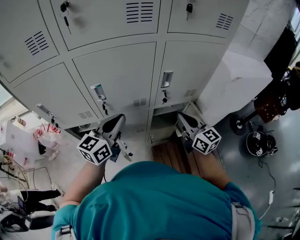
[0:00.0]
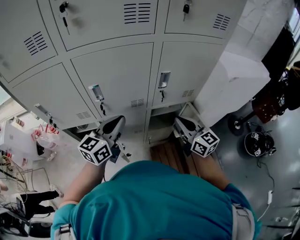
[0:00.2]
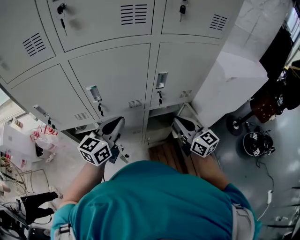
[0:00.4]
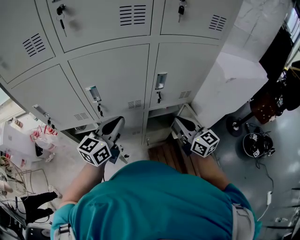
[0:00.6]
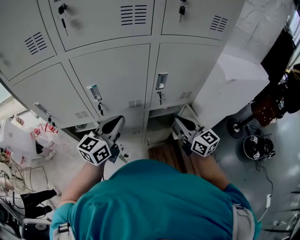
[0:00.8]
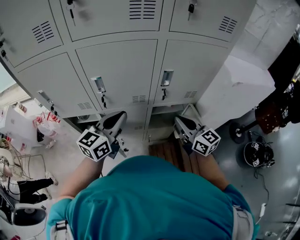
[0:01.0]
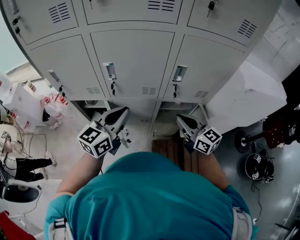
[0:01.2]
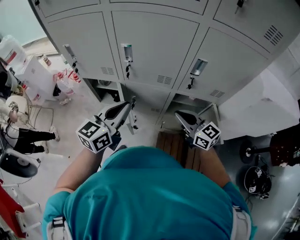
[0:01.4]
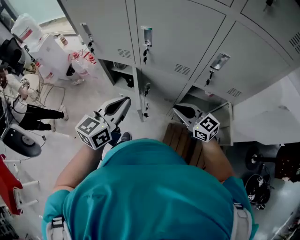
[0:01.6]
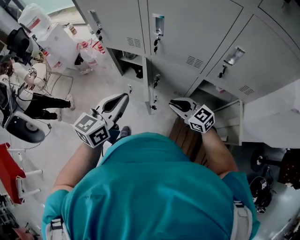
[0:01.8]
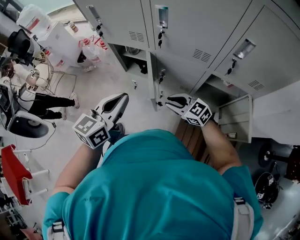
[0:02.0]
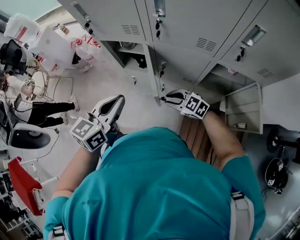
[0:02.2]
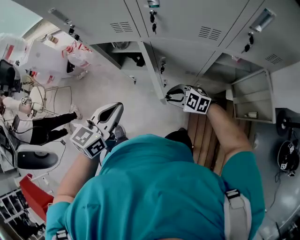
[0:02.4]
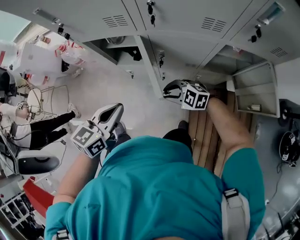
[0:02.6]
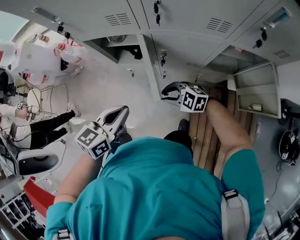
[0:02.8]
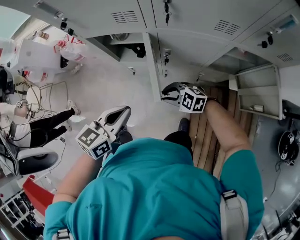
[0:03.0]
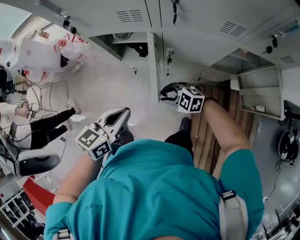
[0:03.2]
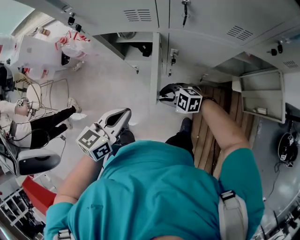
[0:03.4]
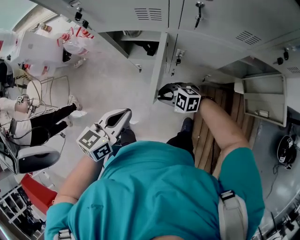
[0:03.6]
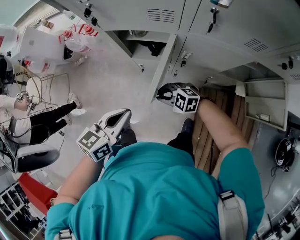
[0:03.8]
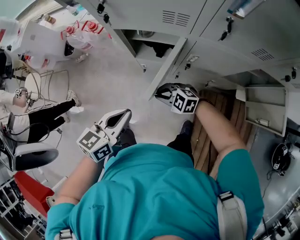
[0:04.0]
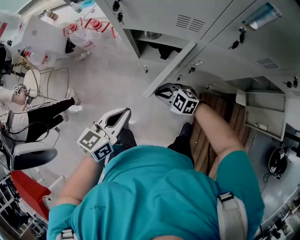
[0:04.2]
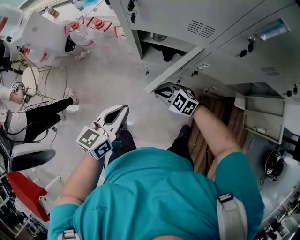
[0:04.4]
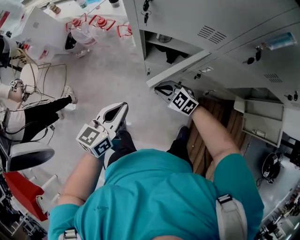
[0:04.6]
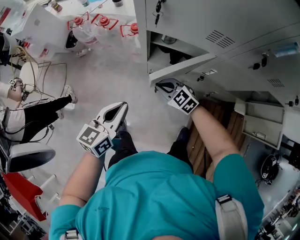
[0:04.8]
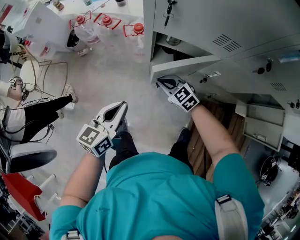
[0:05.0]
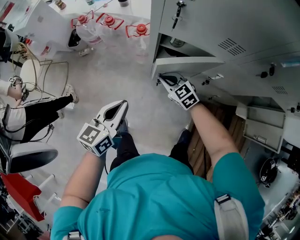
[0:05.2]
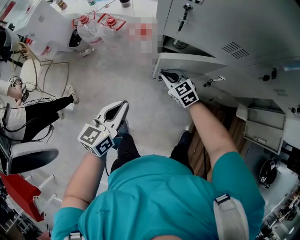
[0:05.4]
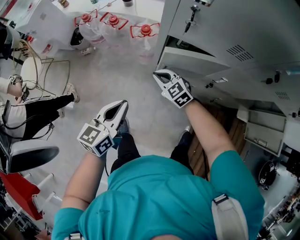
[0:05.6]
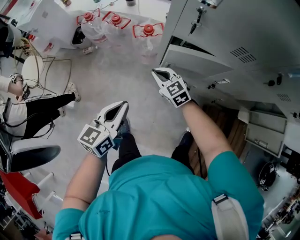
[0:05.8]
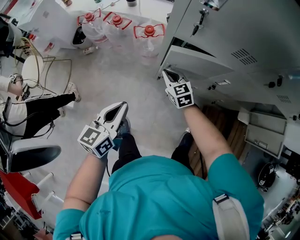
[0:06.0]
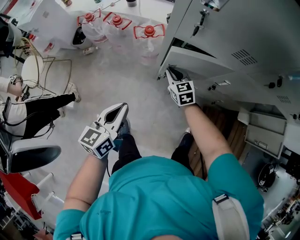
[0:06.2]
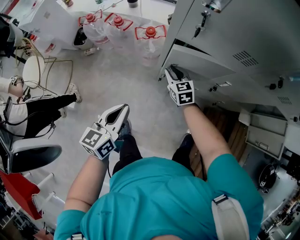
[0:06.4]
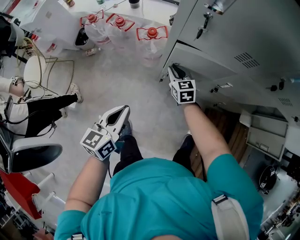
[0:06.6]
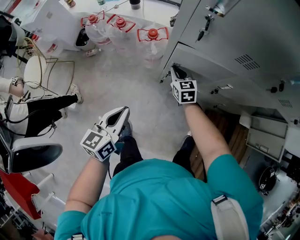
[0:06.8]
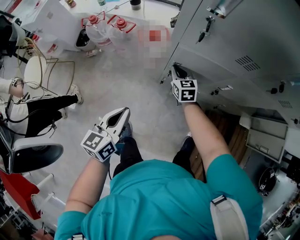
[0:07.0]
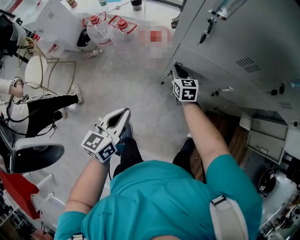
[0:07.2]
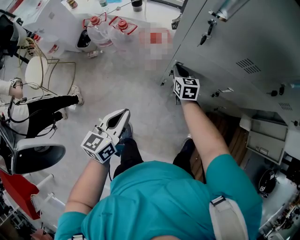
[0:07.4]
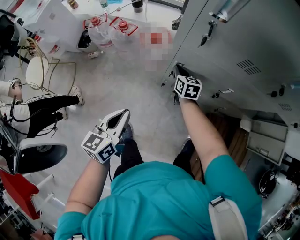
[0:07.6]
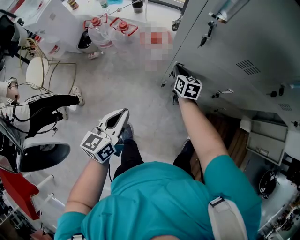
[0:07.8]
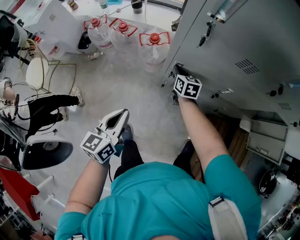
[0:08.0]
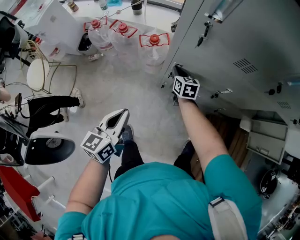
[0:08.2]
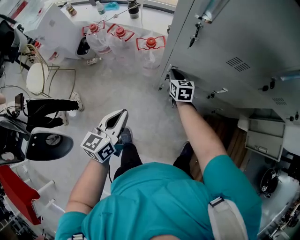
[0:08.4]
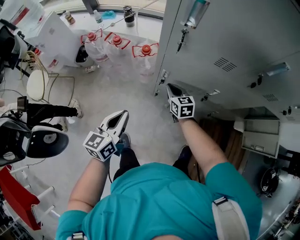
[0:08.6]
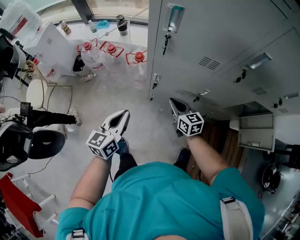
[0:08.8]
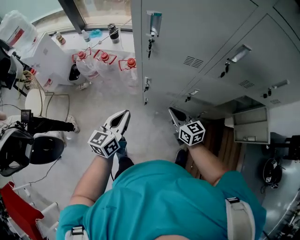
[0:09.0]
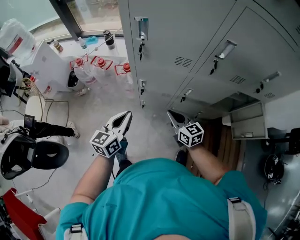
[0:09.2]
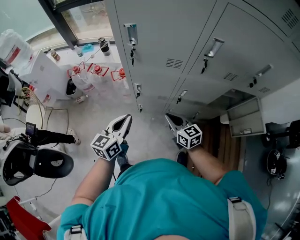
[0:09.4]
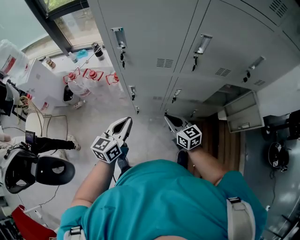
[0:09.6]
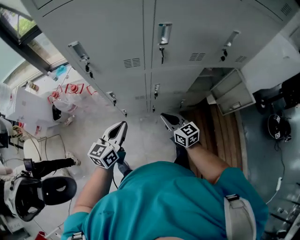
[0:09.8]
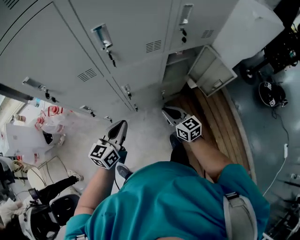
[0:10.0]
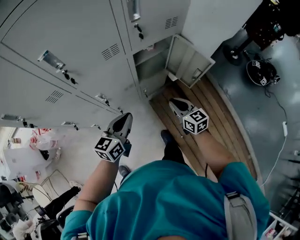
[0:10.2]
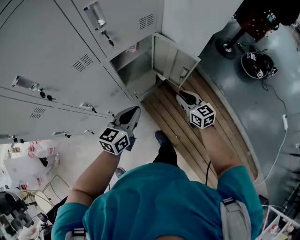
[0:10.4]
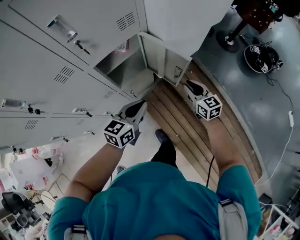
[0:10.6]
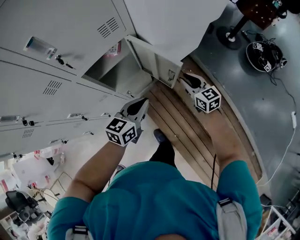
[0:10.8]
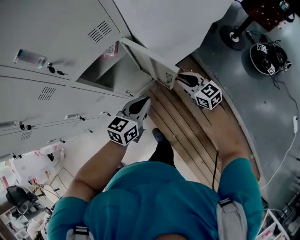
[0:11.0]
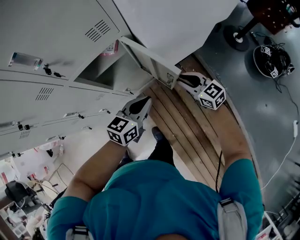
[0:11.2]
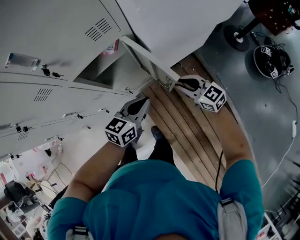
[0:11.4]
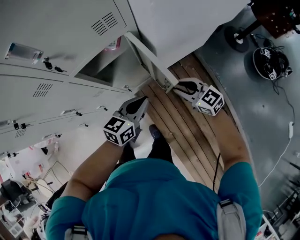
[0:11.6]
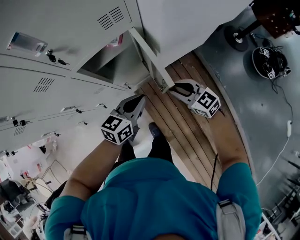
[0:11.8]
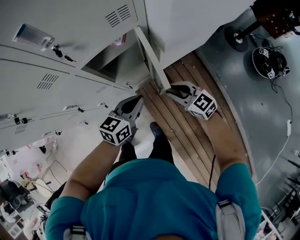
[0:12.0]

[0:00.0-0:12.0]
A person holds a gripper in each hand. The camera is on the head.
0.0 to 1.6 s: The left gripper moves approximately 15 cm, and swivels about 30 degrees, while the right gripper ends up some 15 cm from where it was, and changes its angle by some 50 degrees.
1.6 to 3.0 s: The grippers both shift downward by roughly 25 cm. The right gripper changes its angle by about 40 degrees; the left gripper turns by roughly 30 degrees.
3.0 to 4.4 s: The right gripper changes place by some 20 cm. Meanwhile the left gripper moves some 15 cm.
4.4 to 6.0 s: The left gripper is displaced to the left and forward by about 15 cm, while the right gripper shifts about 15 cm forward, and changes its angle by roughly 40 degrees.
6.0 to 7.6 s: The right gripper shifts roughly 5 cm forward, and turns by approximately 30 degrees.
7.6 to 9.0 s: The right gripper moves backward, upward and to the right, approximately 25 cm. Meanwhile the left gripper goes about 10 cm to the right and upward.
9.0 to 10.4 s: The two grippers travel together, approximately 60 cm. The right gripper changes its angle by roughly 40 degrees, while the left gripper swivels roughly 50 degrees.
10.4 to 12.0 s: The right gripper heads forward, covering roughly 5 cm, and changes its angle by some 30 degrees; the left gripper goes approximately 15 cm to the right, forward and downward.

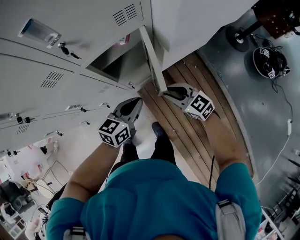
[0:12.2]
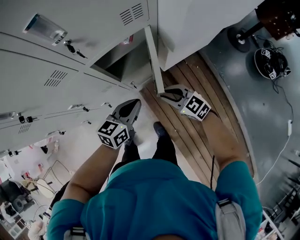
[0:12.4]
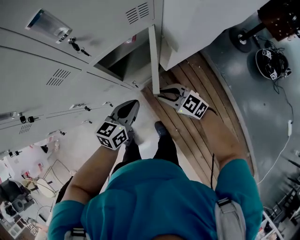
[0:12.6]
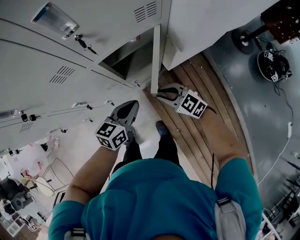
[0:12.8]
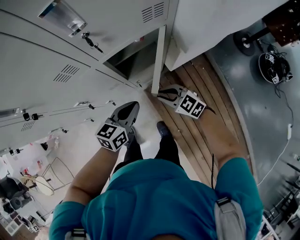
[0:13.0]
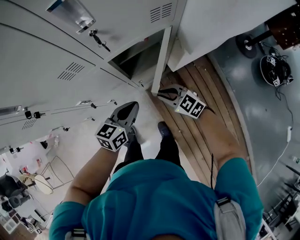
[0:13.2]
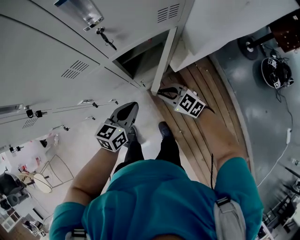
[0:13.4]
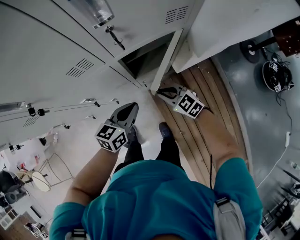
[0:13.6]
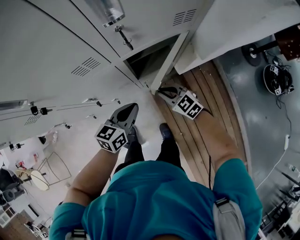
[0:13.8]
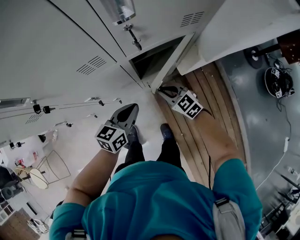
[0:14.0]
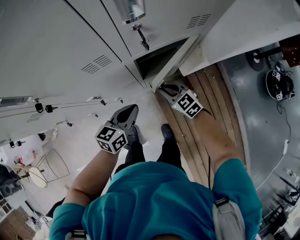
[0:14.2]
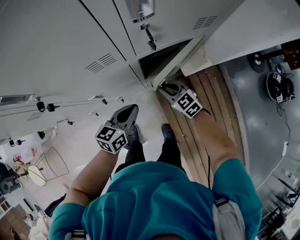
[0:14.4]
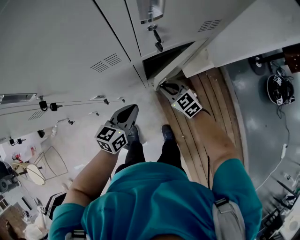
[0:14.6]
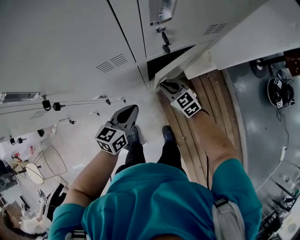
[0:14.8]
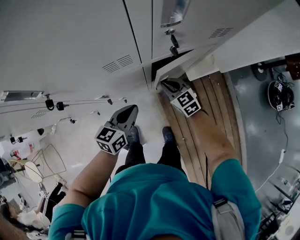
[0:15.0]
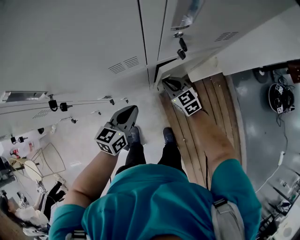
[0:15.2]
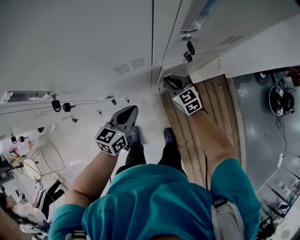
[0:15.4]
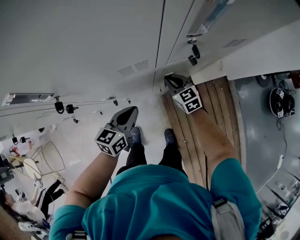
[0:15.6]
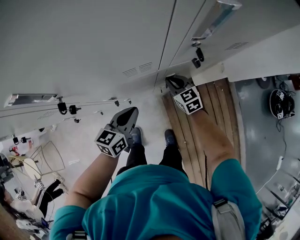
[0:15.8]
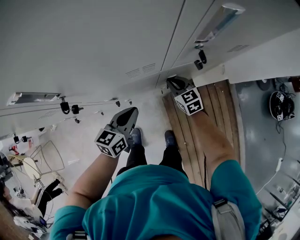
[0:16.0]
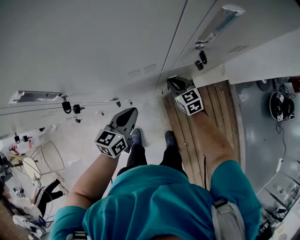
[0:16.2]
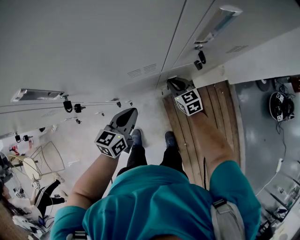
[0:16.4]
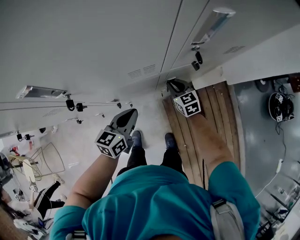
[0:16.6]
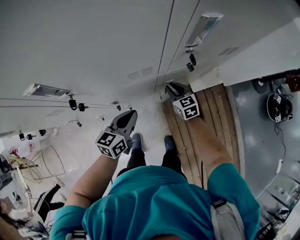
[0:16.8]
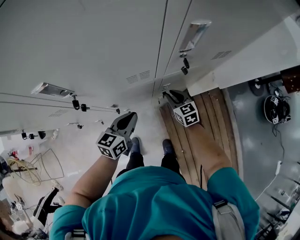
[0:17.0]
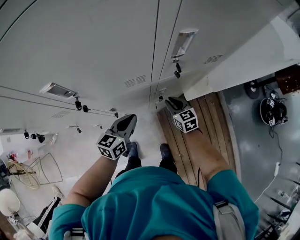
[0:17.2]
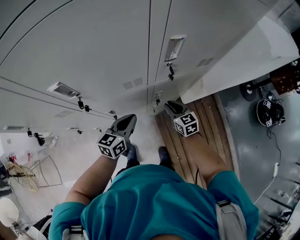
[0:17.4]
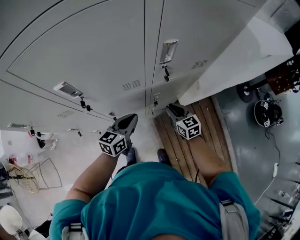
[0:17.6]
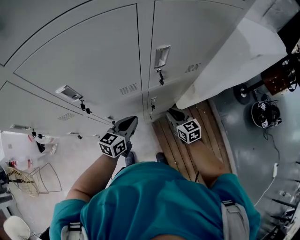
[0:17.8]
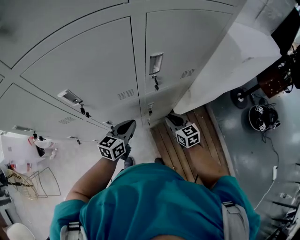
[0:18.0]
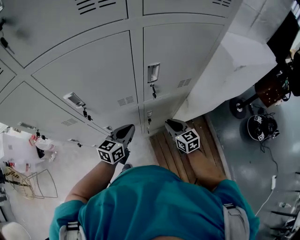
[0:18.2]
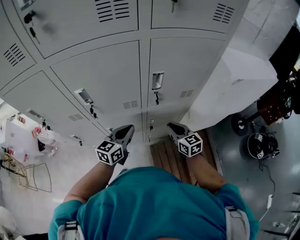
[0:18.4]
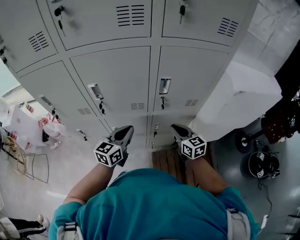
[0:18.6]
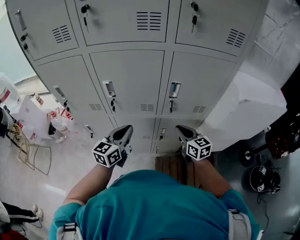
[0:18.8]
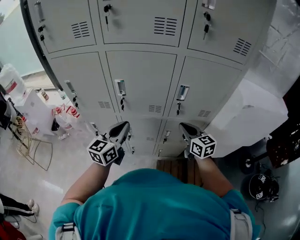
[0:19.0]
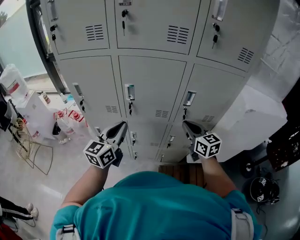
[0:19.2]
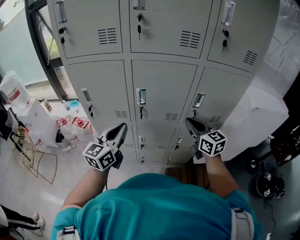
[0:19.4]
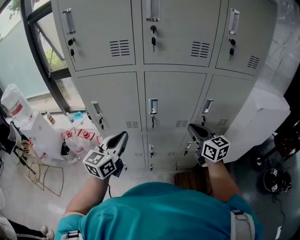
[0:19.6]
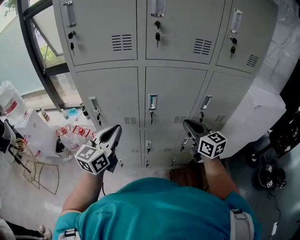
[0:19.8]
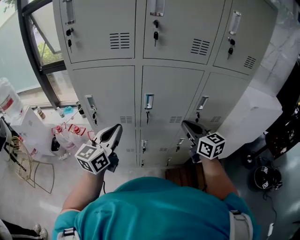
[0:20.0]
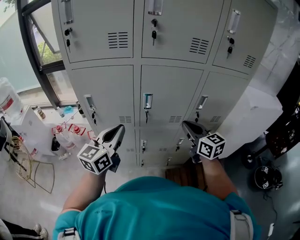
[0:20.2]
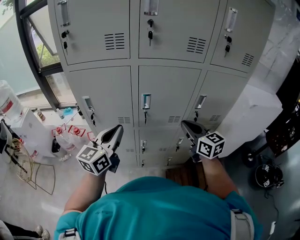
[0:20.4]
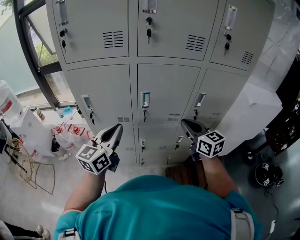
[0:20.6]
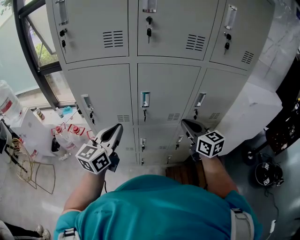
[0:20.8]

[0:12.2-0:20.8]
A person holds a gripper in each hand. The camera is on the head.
12.2 to 13.6 s: Both grippers travel together to the left, about 15 cm.
13.6 to 15.0 s: The right gripper heads forward and to the left, covering roughly 10 cm; the left gripper moves to the left, roughly 10 cm.
15.0 to 16.6 s: The left gripper shifts by some 5 cm.
16.6 to 18.0 s: The right gripper travels upward, backward and to the right by about 20 cm. Meanwhile the left gripper is displaced upward and to the right by roughly 15 cm.
18.0 to 19.4 s: The right gripper is displaced upward and to the left by some 30 cm, and turns by roughly 30 degrees. Meanwhile the left gripper moves upward, to the left and backward, some 35 cm, and rotates some 40 degrees.
19.4 to 20.8 s: The two grippers go about 5 cm to the left.

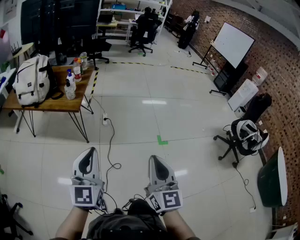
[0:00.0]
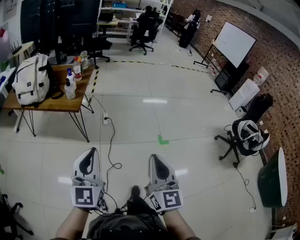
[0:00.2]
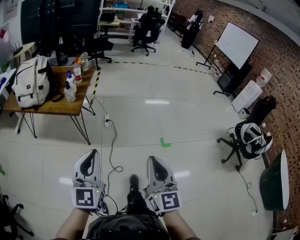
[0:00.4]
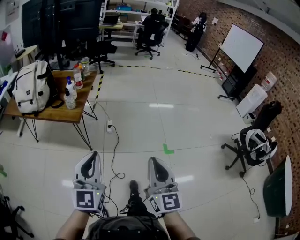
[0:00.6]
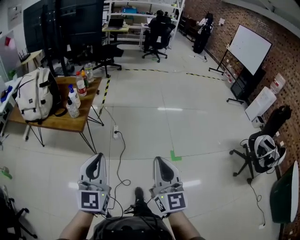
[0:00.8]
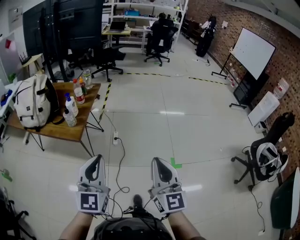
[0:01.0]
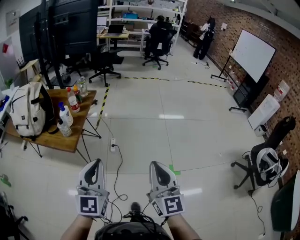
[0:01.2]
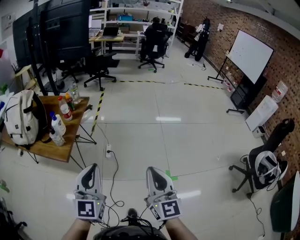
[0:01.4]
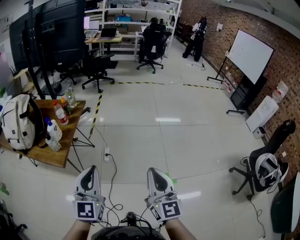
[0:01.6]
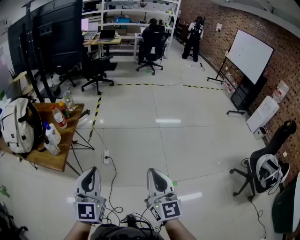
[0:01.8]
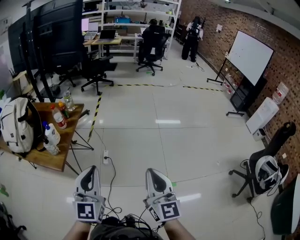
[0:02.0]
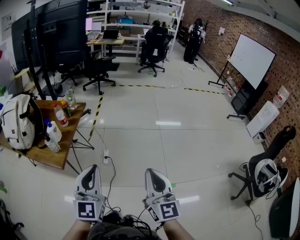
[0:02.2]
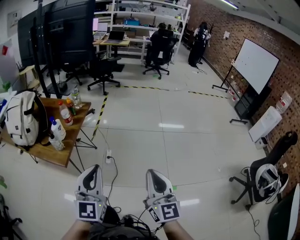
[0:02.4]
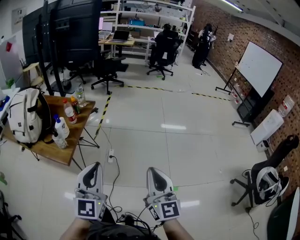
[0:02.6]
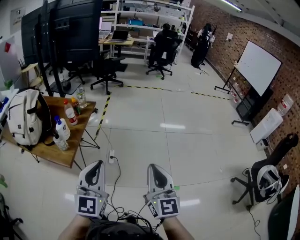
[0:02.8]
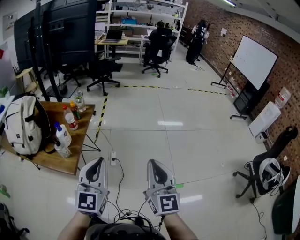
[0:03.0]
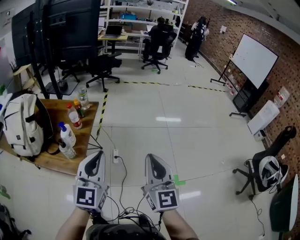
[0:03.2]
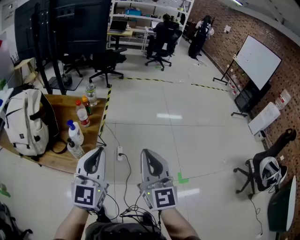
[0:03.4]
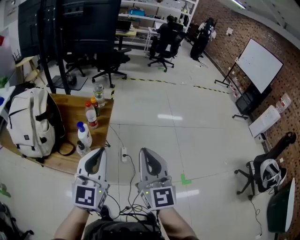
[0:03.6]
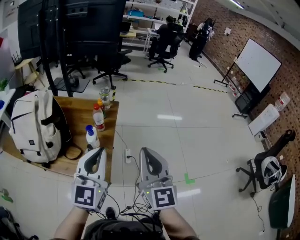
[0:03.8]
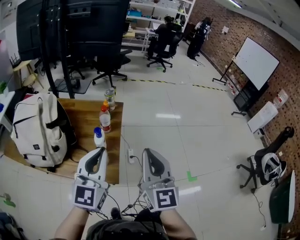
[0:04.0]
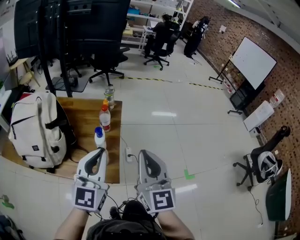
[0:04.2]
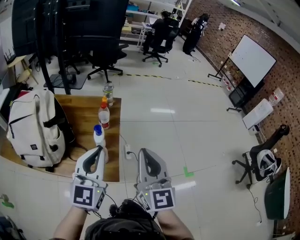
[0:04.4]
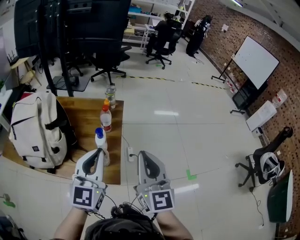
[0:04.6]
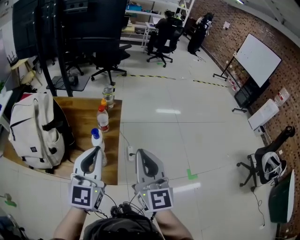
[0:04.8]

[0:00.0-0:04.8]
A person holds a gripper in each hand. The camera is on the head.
0.0 to 1.6 s: Both grippers are carried forward, about 50 cm.
1.6 to 3.2 s: The grippers both shift to the left and forward by approximately 20 cm.
3.2 to 4.8 s: Both grippers travel together to the left, roughly 35 cm.
